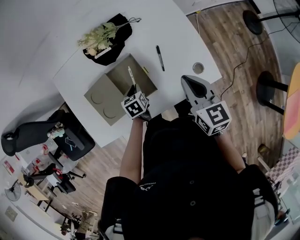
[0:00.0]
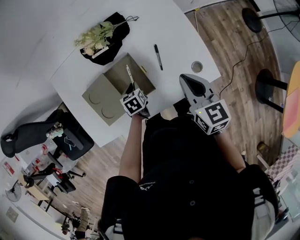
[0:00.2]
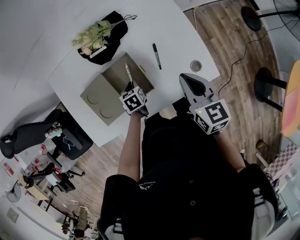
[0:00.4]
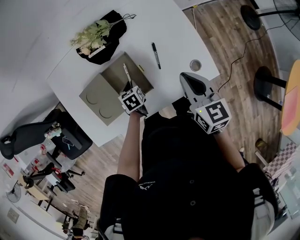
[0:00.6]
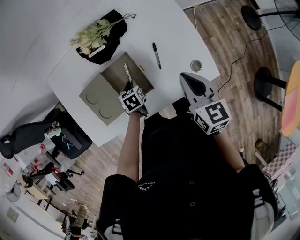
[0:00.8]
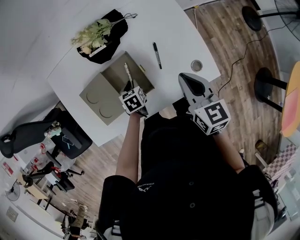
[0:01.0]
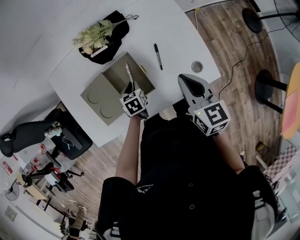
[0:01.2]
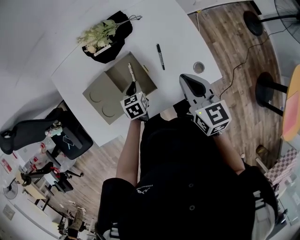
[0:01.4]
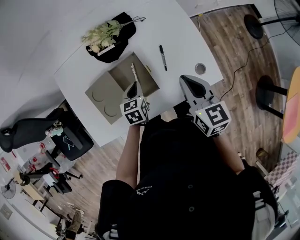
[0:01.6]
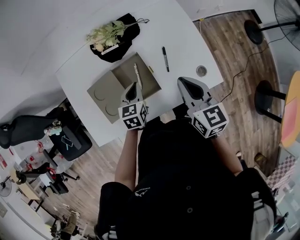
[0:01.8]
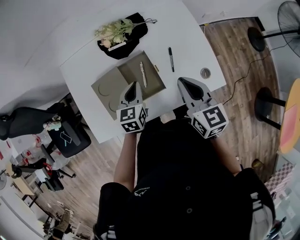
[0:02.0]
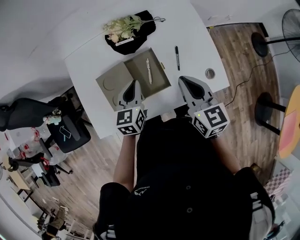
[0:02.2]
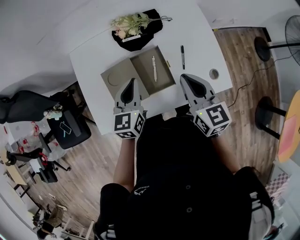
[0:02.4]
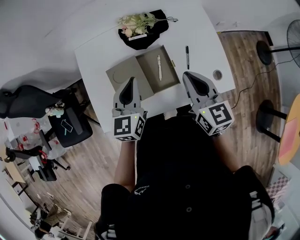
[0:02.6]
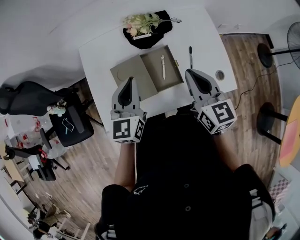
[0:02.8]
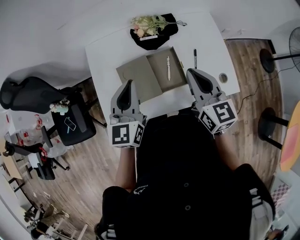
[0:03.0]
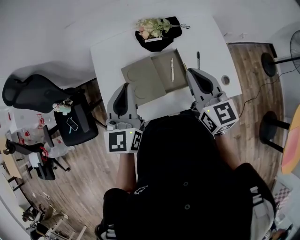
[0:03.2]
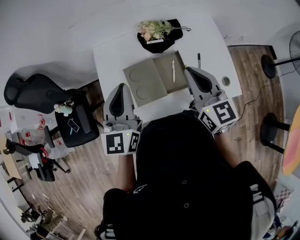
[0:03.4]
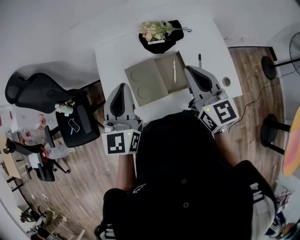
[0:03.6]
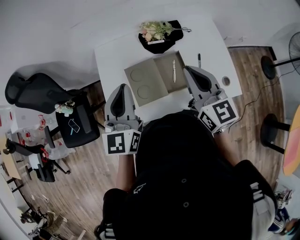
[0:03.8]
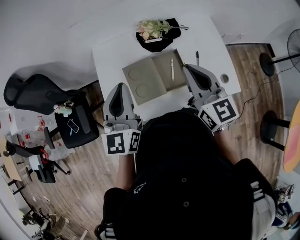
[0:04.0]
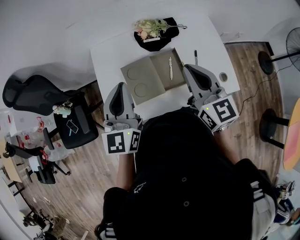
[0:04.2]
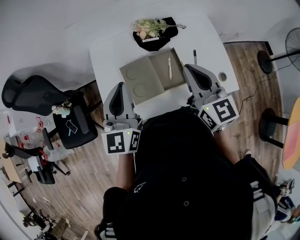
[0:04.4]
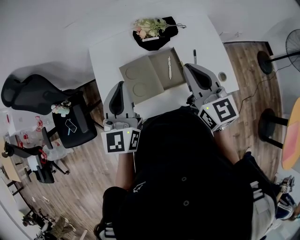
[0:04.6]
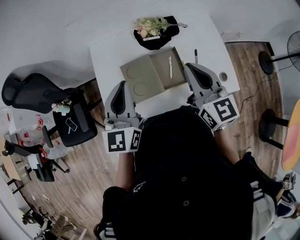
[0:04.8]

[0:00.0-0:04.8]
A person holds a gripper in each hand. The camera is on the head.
0:00.0 to 0:01.6: The left gripper shifts some 5 cm upward.
0:01.6 to 0:03.2: The left gripper goes about 35 cm upward and to the left, and tips its fingers upward by some 40 degrees. Meanwhile the right gripper moves to the left and upward, approximately 20 cm.
0:03.2 to 0:04.8: The grippers move only a little.

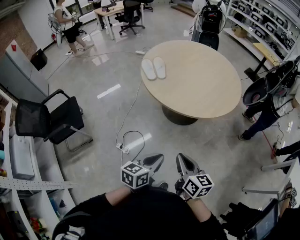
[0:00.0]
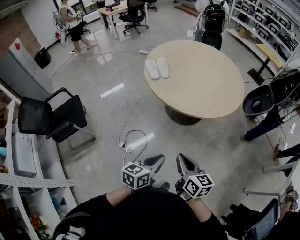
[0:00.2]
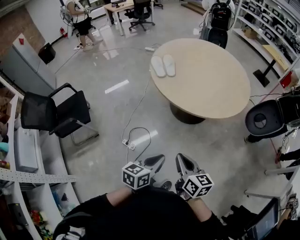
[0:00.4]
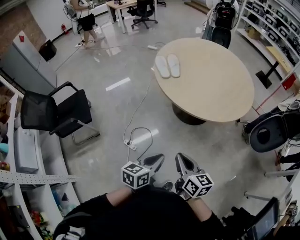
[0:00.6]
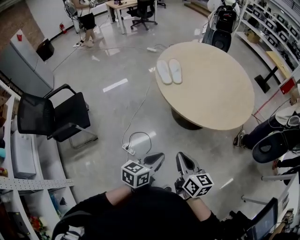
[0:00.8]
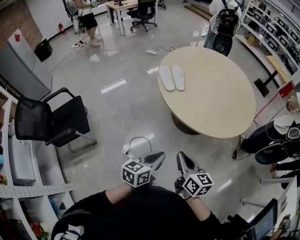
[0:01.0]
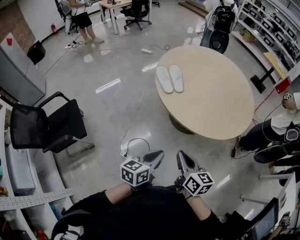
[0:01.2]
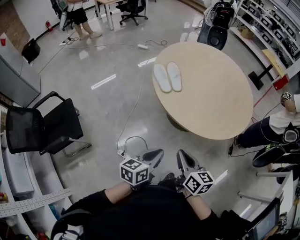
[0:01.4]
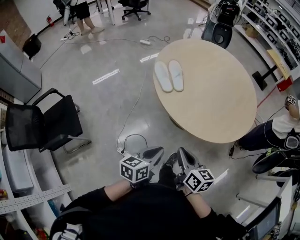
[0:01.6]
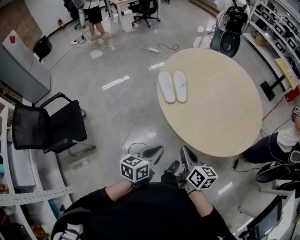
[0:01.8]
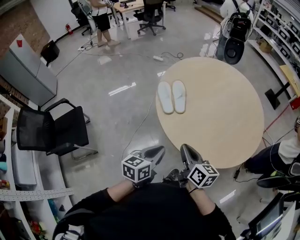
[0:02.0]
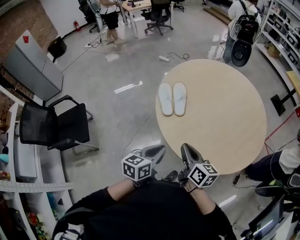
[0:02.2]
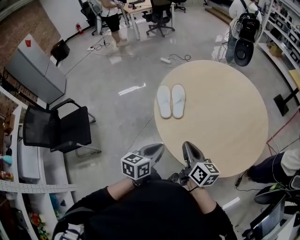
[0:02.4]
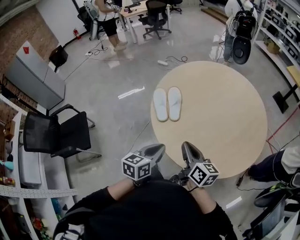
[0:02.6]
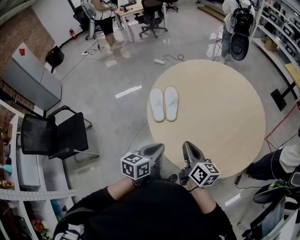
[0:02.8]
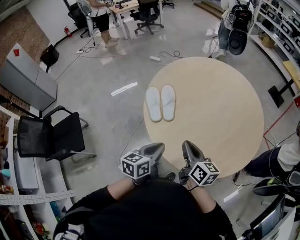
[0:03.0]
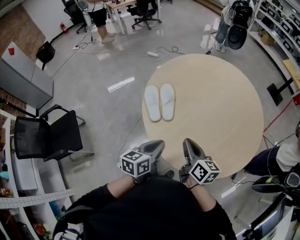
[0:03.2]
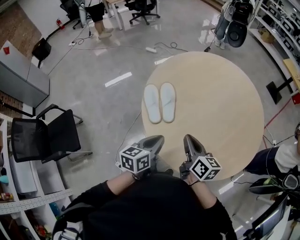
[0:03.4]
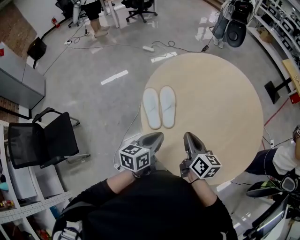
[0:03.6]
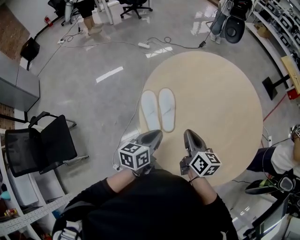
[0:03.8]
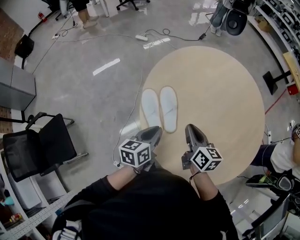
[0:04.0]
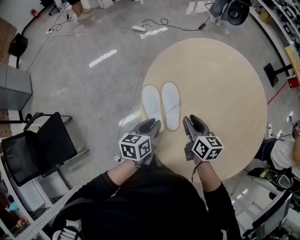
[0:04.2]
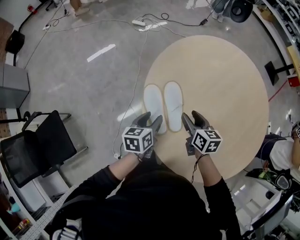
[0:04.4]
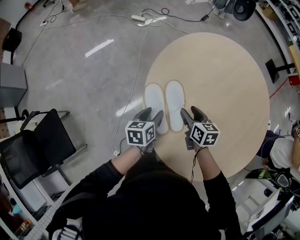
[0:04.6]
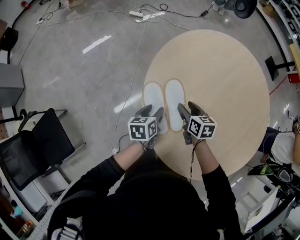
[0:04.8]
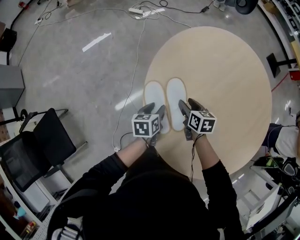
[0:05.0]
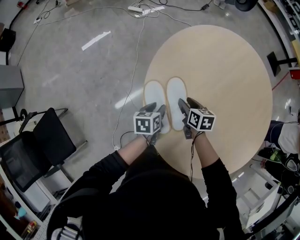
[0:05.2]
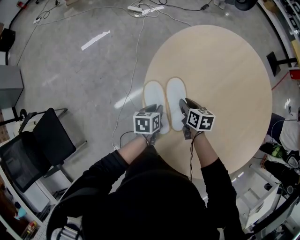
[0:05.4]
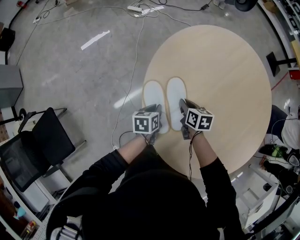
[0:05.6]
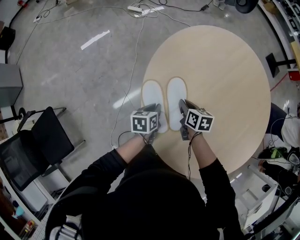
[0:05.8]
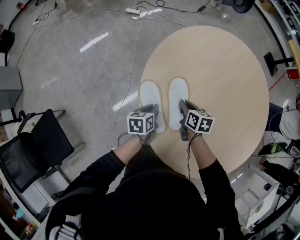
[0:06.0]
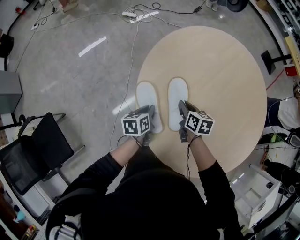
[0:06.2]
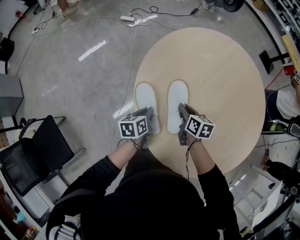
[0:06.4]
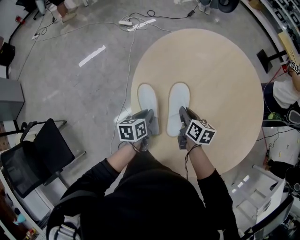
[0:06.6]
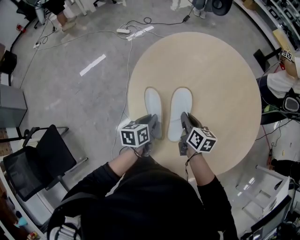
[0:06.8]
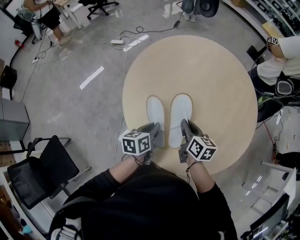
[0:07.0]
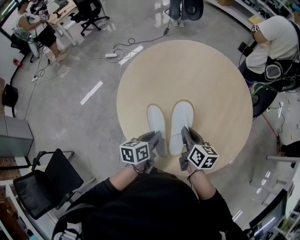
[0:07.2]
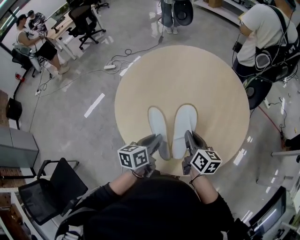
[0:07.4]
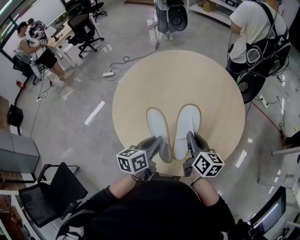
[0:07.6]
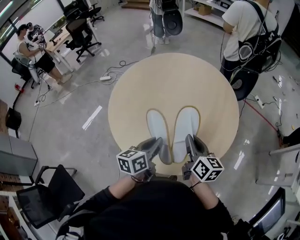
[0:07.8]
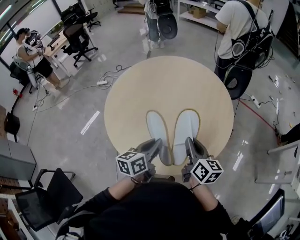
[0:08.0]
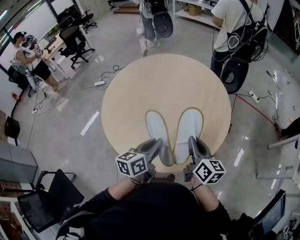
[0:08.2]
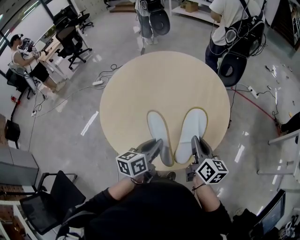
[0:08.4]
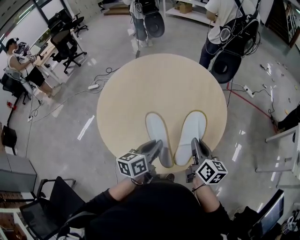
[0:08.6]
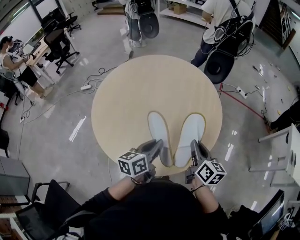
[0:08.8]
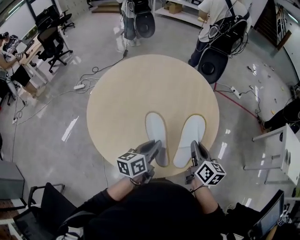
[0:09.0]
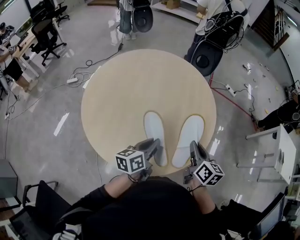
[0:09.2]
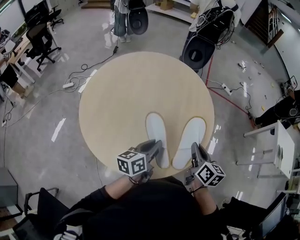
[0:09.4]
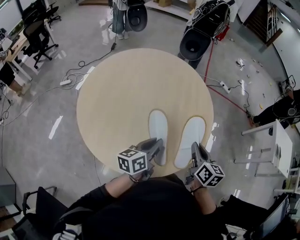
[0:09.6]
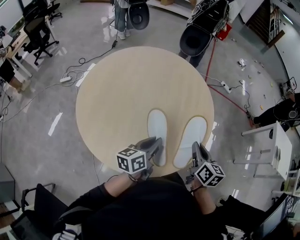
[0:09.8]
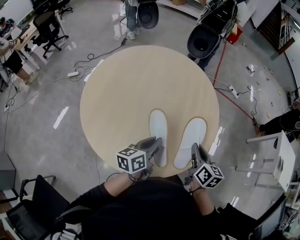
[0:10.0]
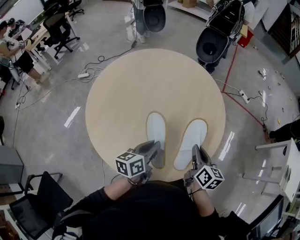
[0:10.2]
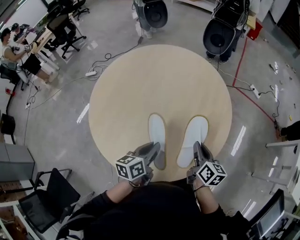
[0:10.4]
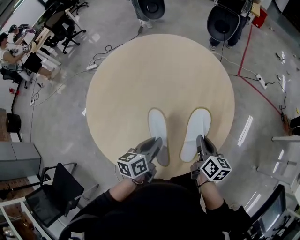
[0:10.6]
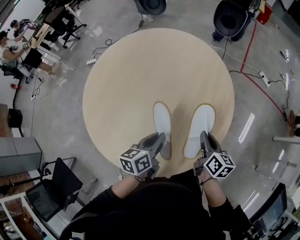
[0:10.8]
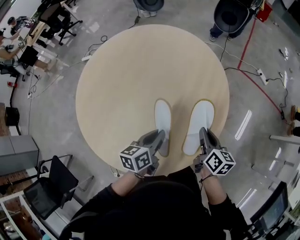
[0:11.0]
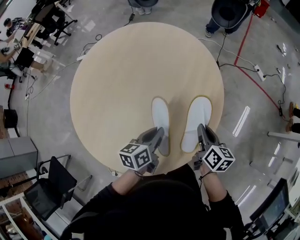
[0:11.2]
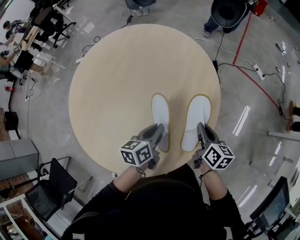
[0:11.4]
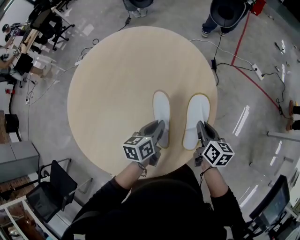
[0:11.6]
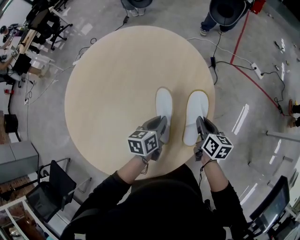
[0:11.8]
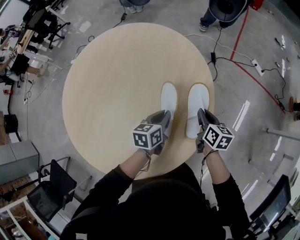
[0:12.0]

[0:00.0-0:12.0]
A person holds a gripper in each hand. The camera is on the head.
0:00.0 to 0:01.6: The grippers both shift forward and to the left by roughly 30 cm.
0:01.6 to 0:03.0: Both grippers travel together forward and to the right, roughly 25 cm.
0:03.0 to 0:04.4: The left gripper travels forward and to the left by roughly 35 cm, and opens its fingers. The right gripper heads forward and downward, covering roughly 35 cm, turns by about 20 degrees, and opens up.
0:04.4 to 0:06.0: The right gripper goes about 10 cm downward and forward, and closes its fingers. Meanwhile the left gripper heads downward, covering approximately 10 cm, and closes up.
0:06.0 to 0:07.6: The grippers both shift to the right, upward and backward by some 40 cm. The right gripper changes its angle by roughly 40 degrees; the left gripper changes its angle by roughly 30 degrees.
0:07.6 to 0:09.0: The two grippers go about 10 cm to the right.
0:09.0 to 0:10.4: Both grippers move forward and downward, some 10 cm.
0:10.4 to 0:12.0: The right gripper heads forward, to the right and downward, covering about 35 cm; the left gripper shifts approximately 35 cm to the right, forward and downward.

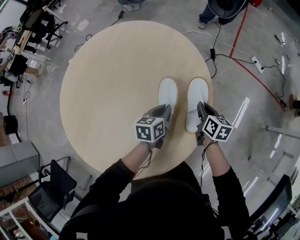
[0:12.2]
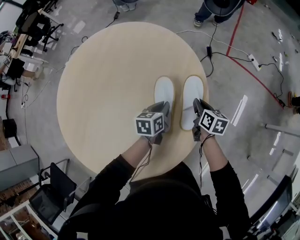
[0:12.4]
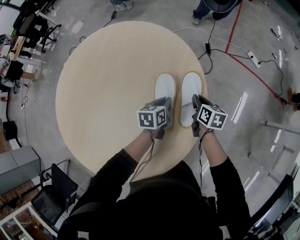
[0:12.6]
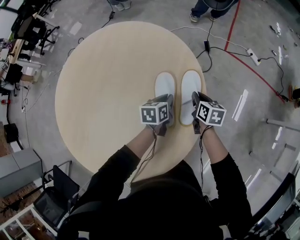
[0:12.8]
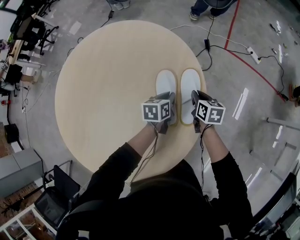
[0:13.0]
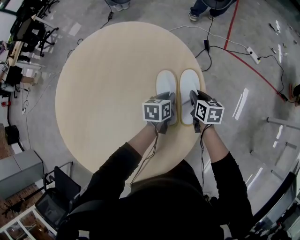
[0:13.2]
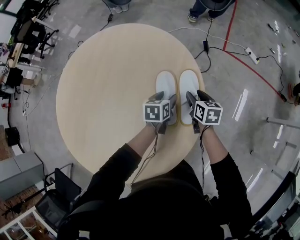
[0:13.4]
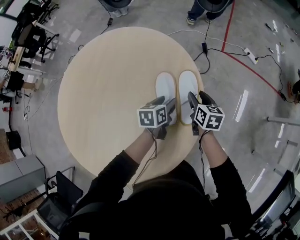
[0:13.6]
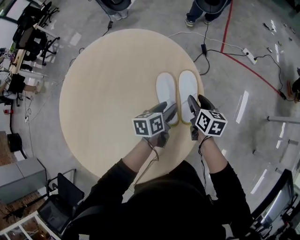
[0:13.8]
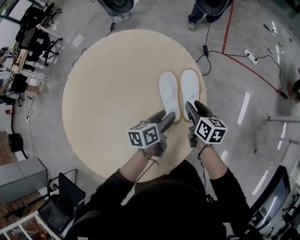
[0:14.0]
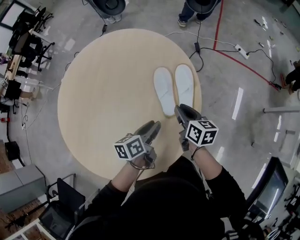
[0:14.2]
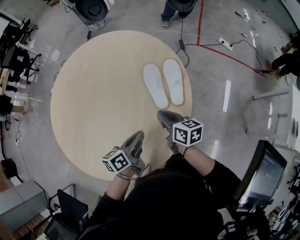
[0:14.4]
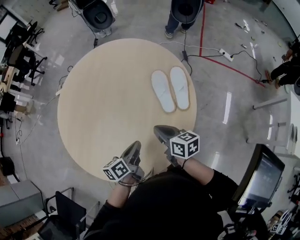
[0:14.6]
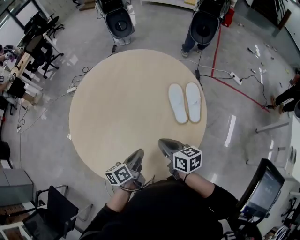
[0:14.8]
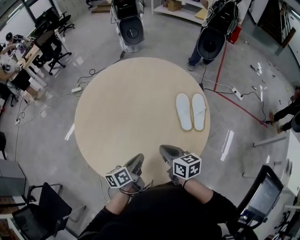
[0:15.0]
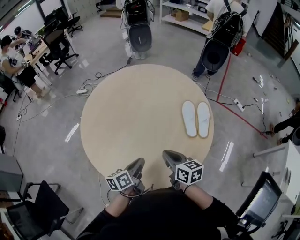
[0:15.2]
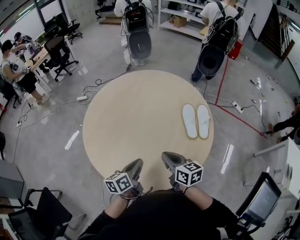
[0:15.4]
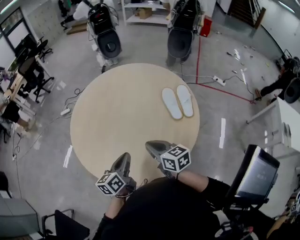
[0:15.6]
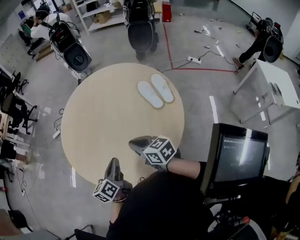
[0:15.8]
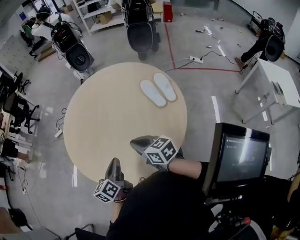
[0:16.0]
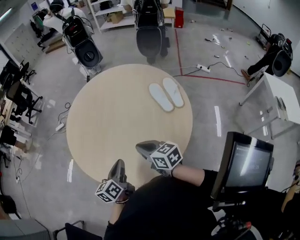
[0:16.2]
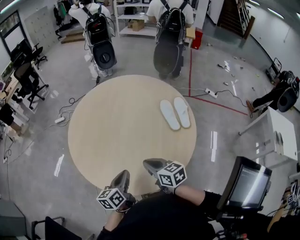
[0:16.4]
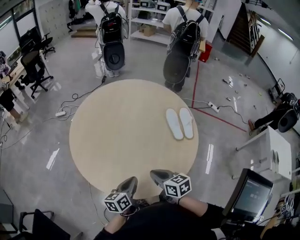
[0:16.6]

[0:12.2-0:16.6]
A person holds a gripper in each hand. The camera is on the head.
0:12.2 to 0:13.6: The right gripper opens. Meanwhile the left gripper heads forward, covering some 5 cm, and opens up.
0:13.6 to 0:15.2: Both grippers are carried backward and to the left, roughly 50 cm. Both grippers travel together upward, some 15 cm. The right gripper turns by about 30 degrees, and closes, while the left gripper changes its angle by roughly 30 degrees, and closes its fingers.
0:15.2 to 0:16.6: The right gripper shifts about 10 cm to the left and backward; the left gripper moves backward and to the left, some 10 cm.

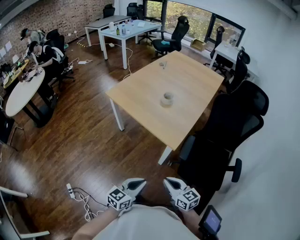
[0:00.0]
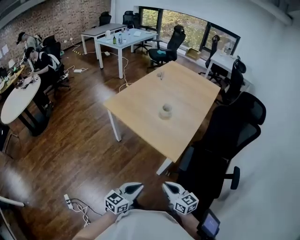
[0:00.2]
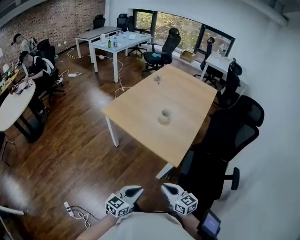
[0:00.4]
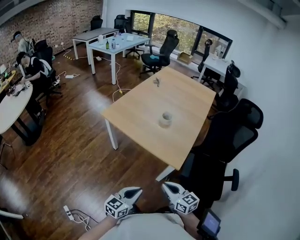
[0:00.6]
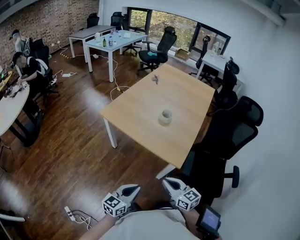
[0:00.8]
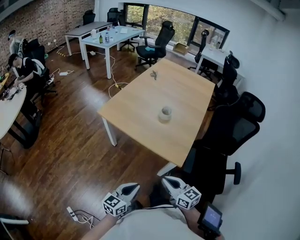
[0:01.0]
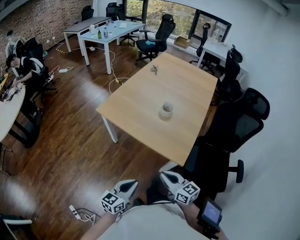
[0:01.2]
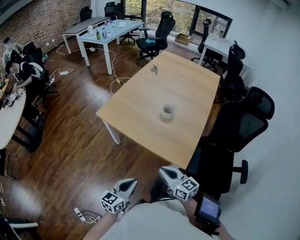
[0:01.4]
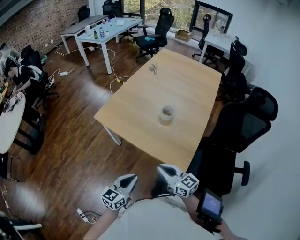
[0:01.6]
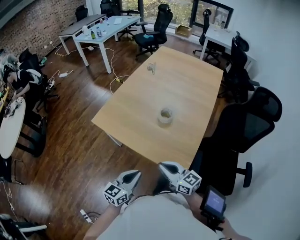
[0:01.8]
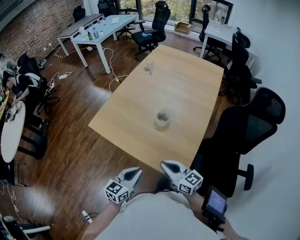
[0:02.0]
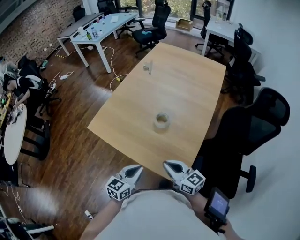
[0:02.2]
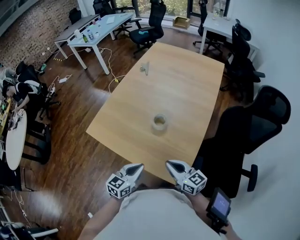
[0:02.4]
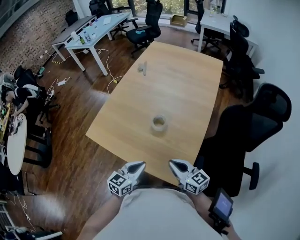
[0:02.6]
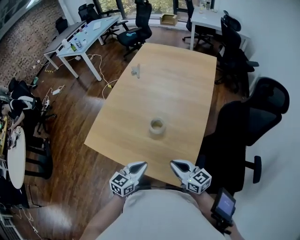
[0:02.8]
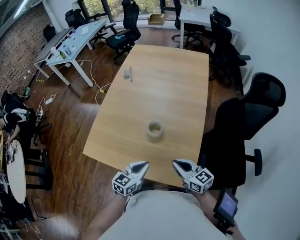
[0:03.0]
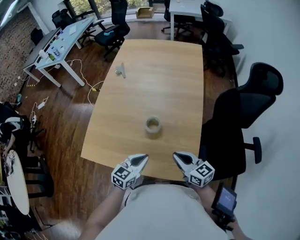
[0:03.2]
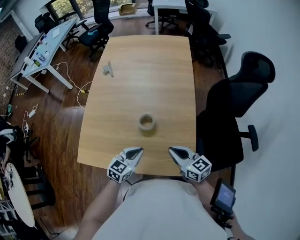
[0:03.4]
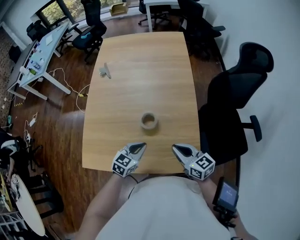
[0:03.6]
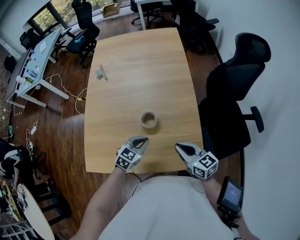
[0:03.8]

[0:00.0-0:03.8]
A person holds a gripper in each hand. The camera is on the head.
0:00.0 to 0:01.2: The right gripper goes approximately 20 cm forward and to the left, while the left gripper heads to the left and forward, covering some 20 cm.
0:01.2 to 0:02.6: Both grippers move forward and to the right, approximately 30 cm.
0:02.6 to 0:03.8: The right gripper moves roughly 5 cm, and turns by approximately 30 degrees, while the left gripper changes place by approximately 15 cm, and rotates some 40 degrees.
